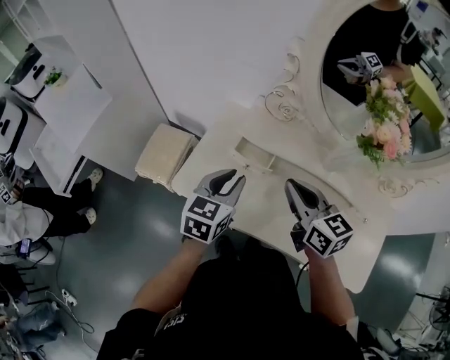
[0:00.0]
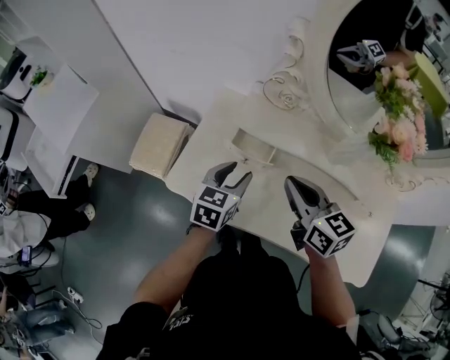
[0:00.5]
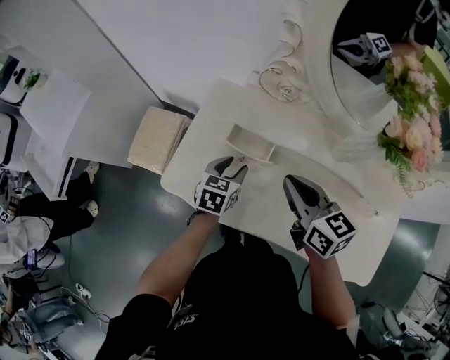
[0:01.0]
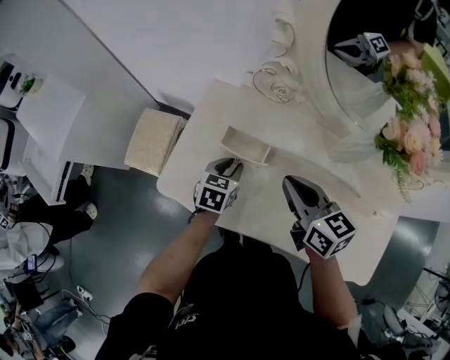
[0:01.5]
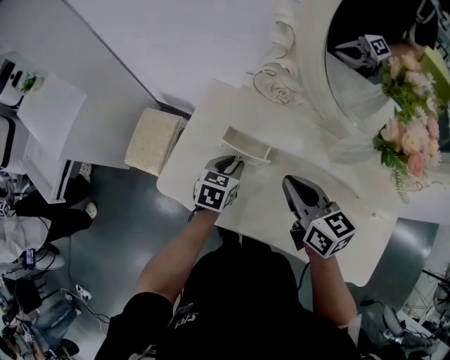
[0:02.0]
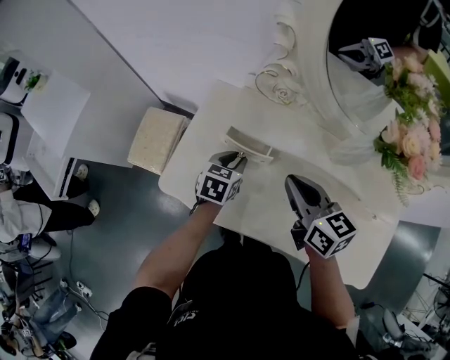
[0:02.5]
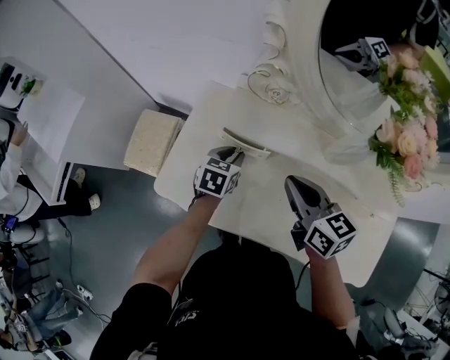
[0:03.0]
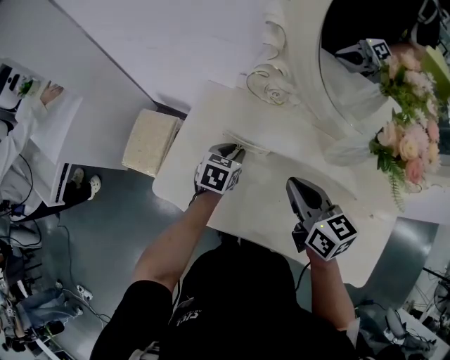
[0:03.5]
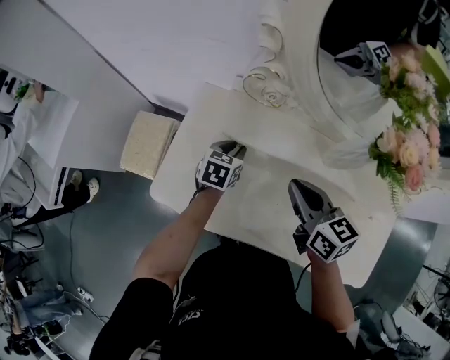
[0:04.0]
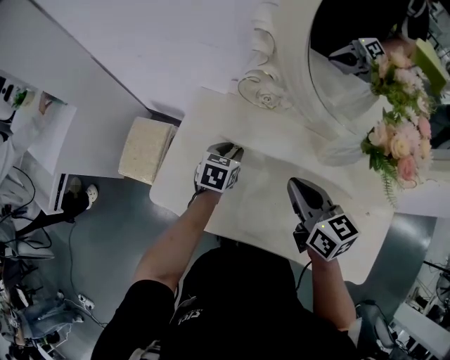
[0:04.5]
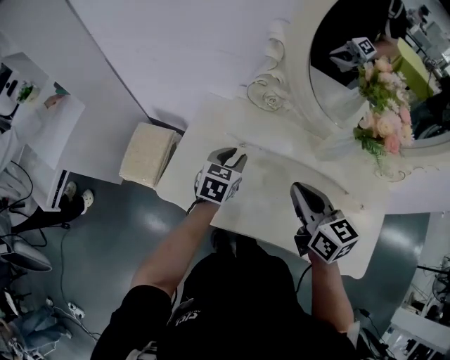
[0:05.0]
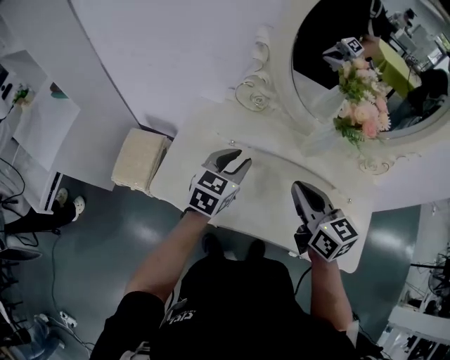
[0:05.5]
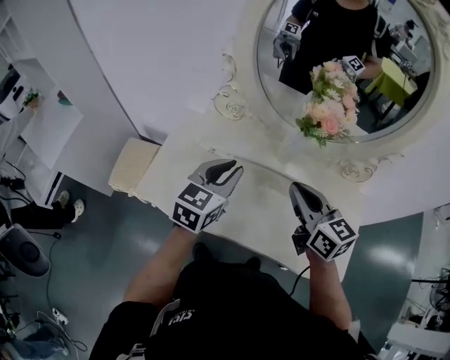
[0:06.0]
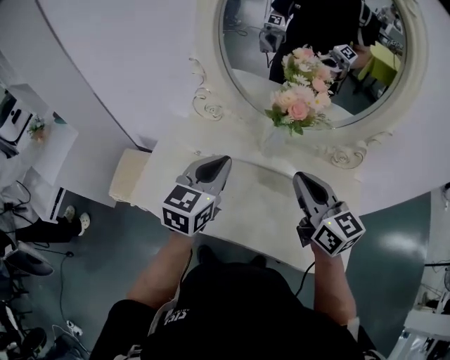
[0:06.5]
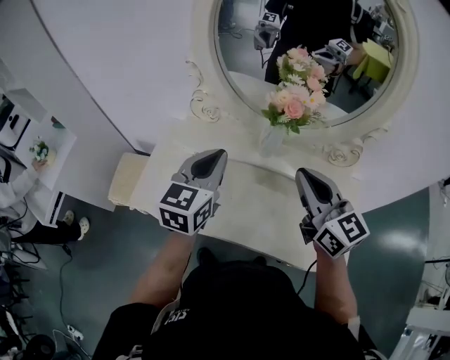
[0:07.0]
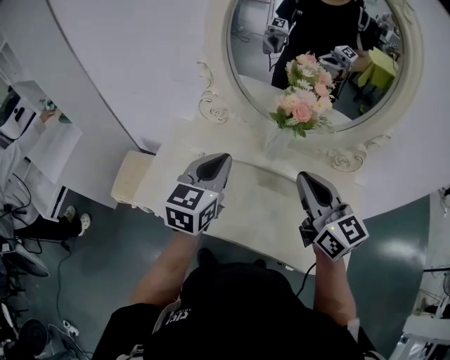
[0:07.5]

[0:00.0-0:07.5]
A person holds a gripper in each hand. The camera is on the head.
0:00.0 to 0:02.0: The left gripper travels downward and forward by about 20 cm, and opens and closes again; the right gripper heads downward, covering roughly 5 cm.
0:02.0 to 0:04.0: The left gripper travels forward by some 5 cm.
0:04.0 to 0:05.5: The right gripper shifts some 10 cm upward and backward, while the left gripper heads upward and backward, covering approximately 20 cm, and changes its angle by roughly 30 degrees.
0:05.5 to 0:07.5: The left gripper is displaced upward and to the right by some 15 cm, and closes up. Meanwhile the right gripper heads to the right and upward, covering some 15 cm.

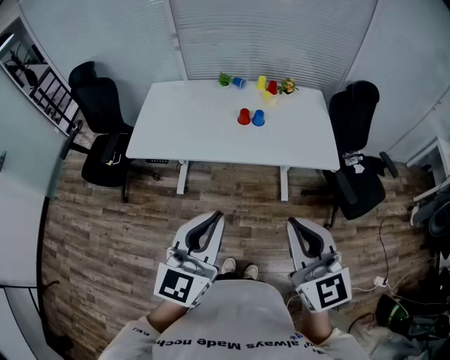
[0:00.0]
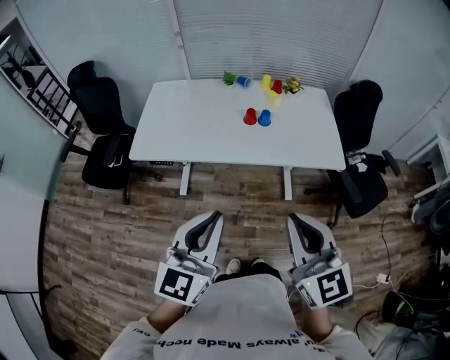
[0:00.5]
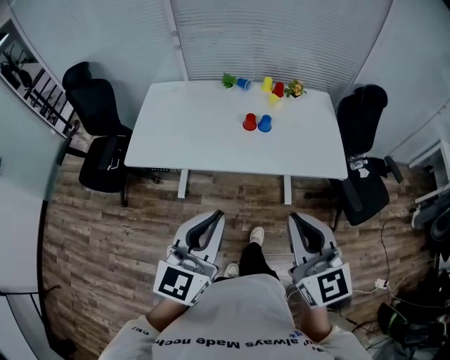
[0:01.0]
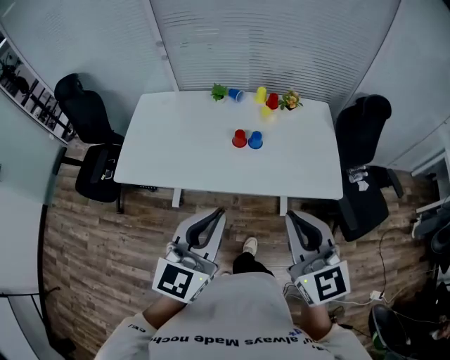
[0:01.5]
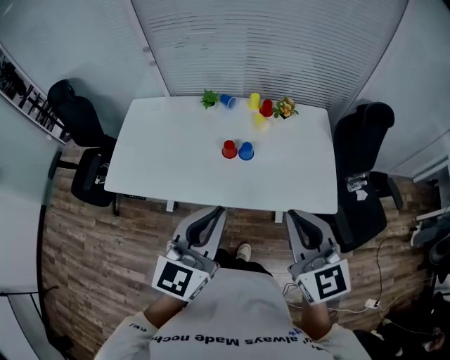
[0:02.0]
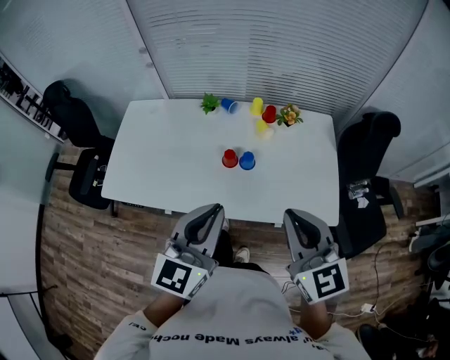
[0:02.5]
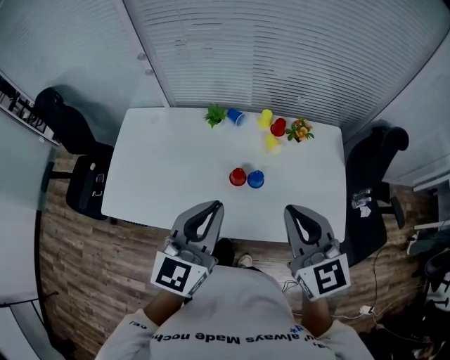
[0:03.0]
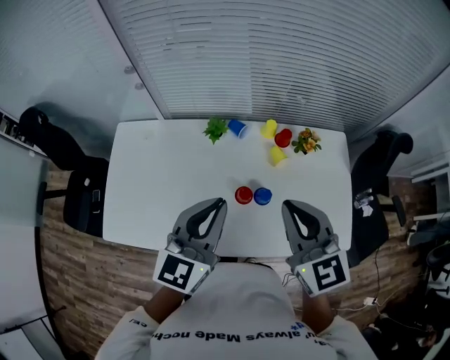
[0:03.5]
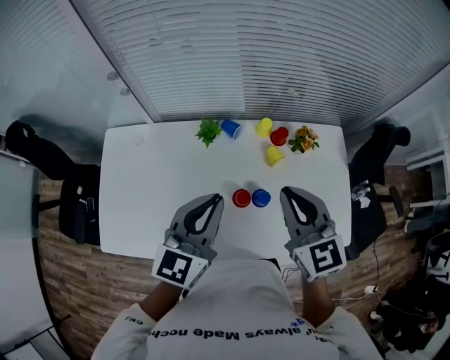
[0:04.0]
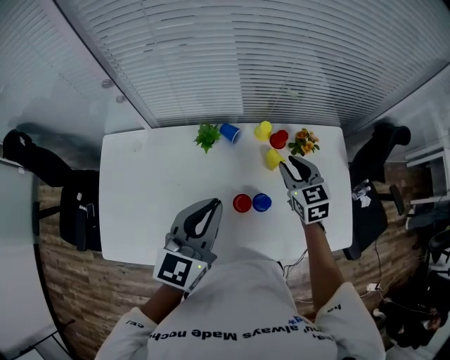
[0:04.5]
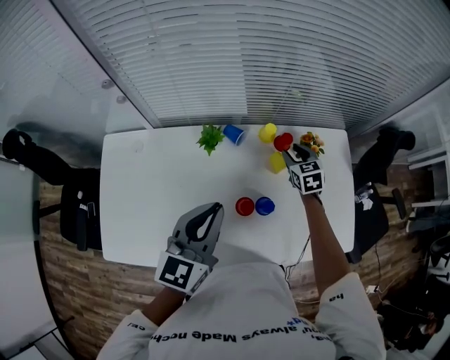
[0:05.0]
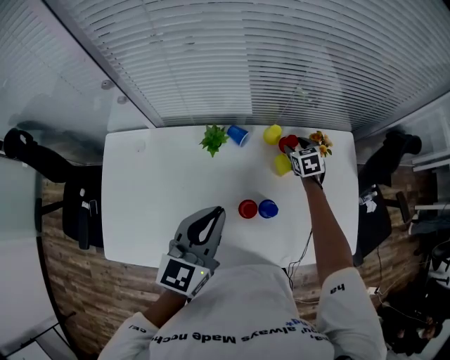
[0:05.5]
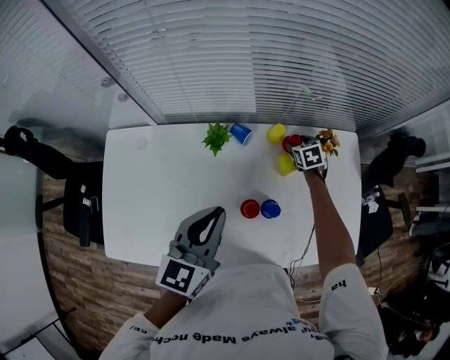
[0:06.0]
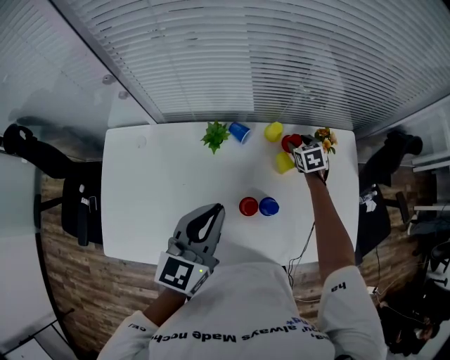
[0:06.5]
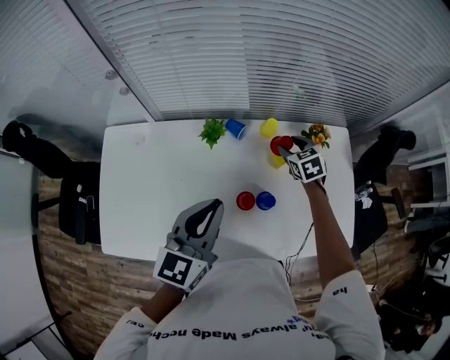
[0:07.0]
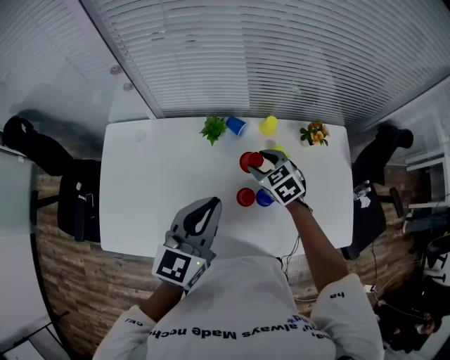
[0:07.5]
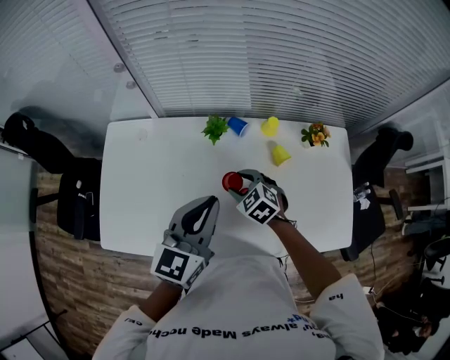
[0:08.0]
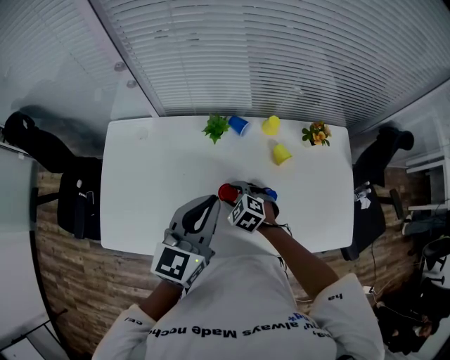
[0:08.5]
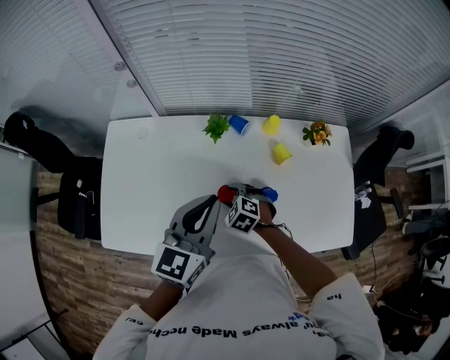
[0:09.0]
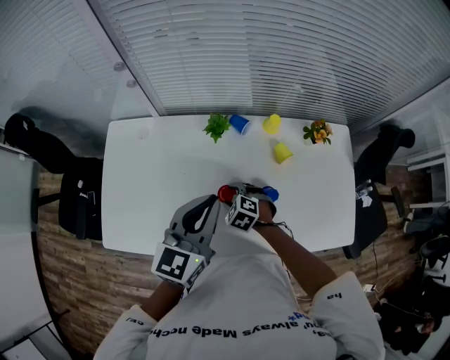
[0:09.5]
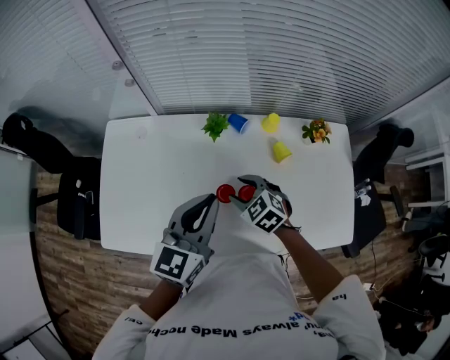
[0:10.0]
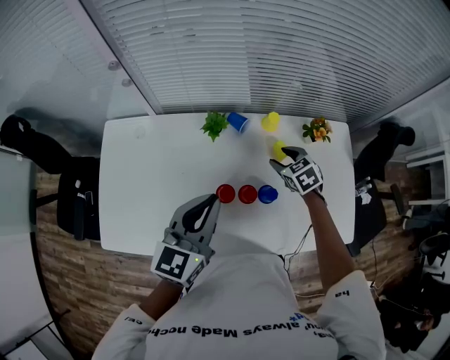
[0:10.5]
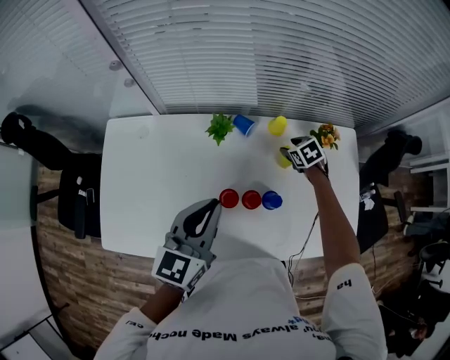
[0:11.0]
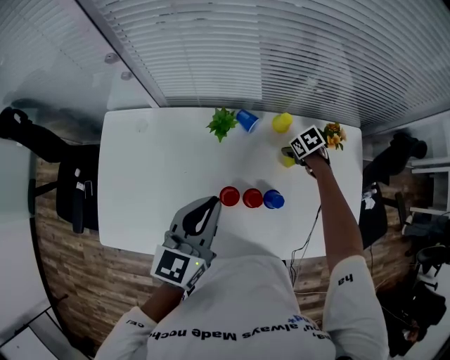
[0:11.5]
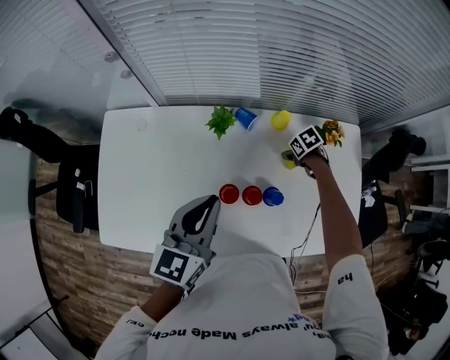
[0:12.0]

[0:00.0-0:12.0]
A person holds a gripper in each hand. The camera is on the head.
0:00.0 to 0:02.0: Both grippers travel together forward, roughly 25 cm.
0:02.0 to 0:04.0: Both grippers travel together forward, roughly 30 cm.
0:04.0 to 0:06.0: The right gripper goes roughly 40 cm downward and forward, tilts its fingers some 40 degrees downward, and opens up. The left gripper ends up approximately 5 cm from where it was.
0:06.0 to 0:08.0: The right gripper travels to the left and backward by about 30 cm, and turns by some 40 degrees.
0:08.0 to 0:10.0: The right gripper reaches approximately 10 cm downward, then returns.
0:10.0 to 0:12.0: The right gripper ends up some 30 cm from where it was, and turns by approximately 50 degrees.

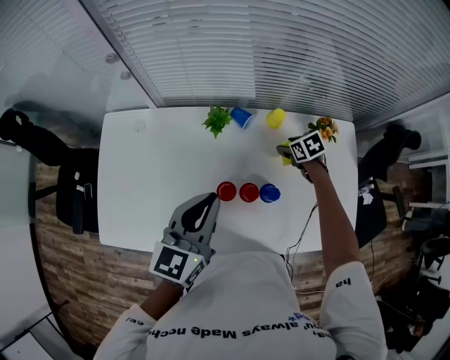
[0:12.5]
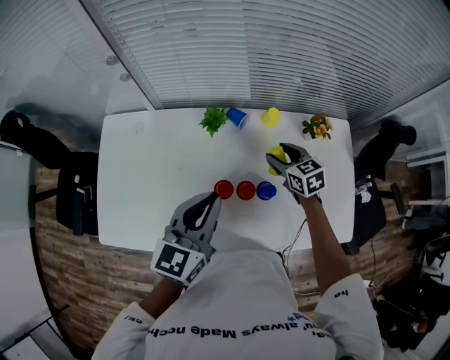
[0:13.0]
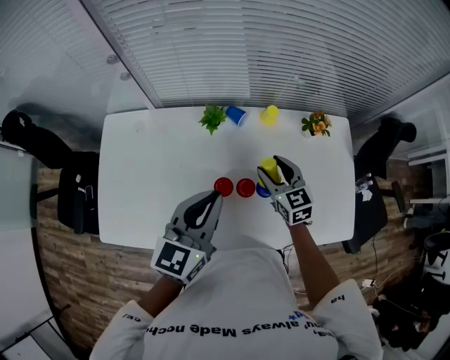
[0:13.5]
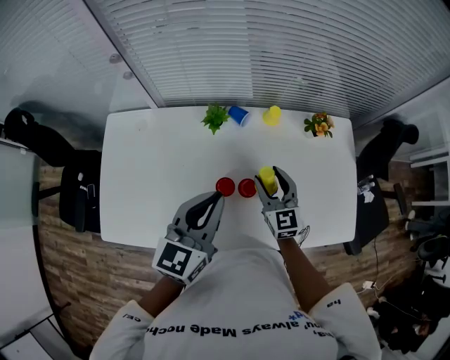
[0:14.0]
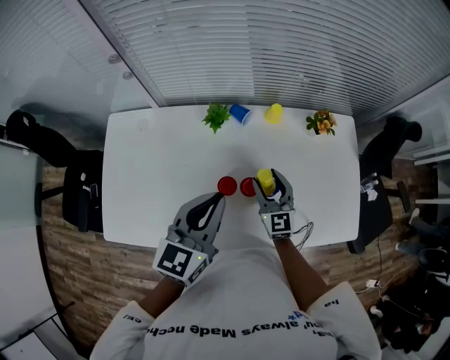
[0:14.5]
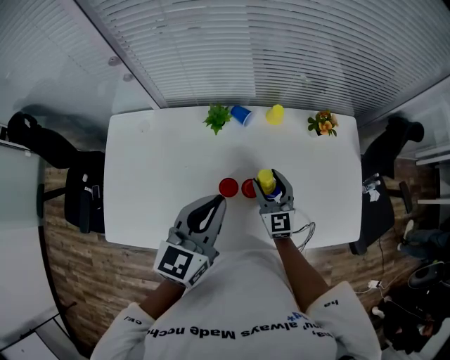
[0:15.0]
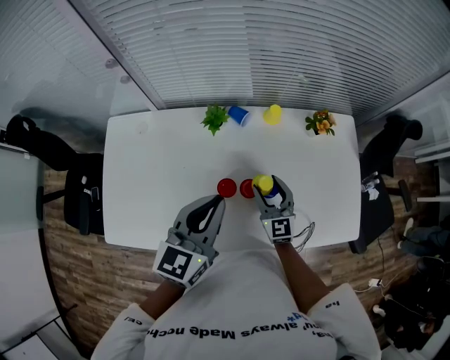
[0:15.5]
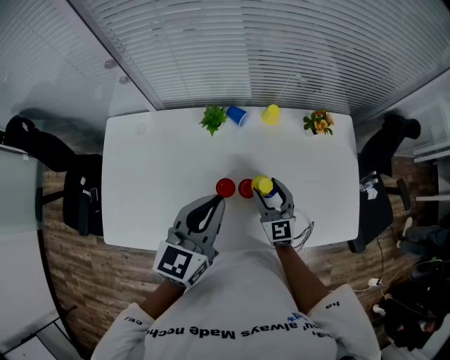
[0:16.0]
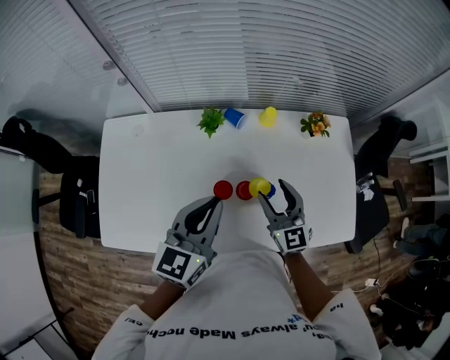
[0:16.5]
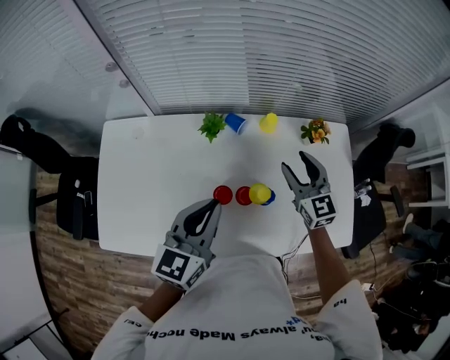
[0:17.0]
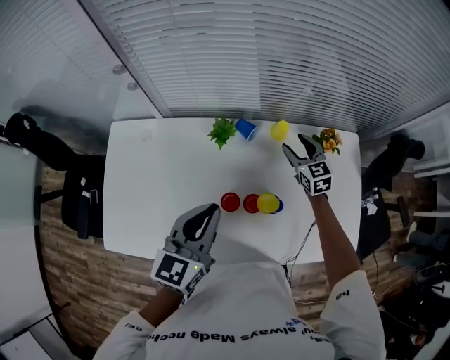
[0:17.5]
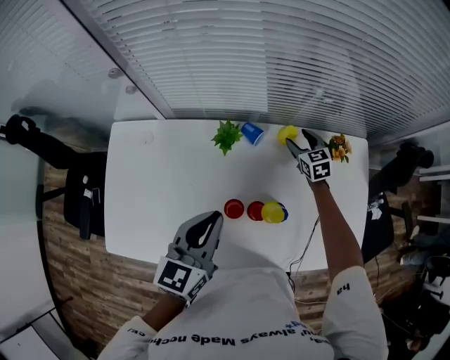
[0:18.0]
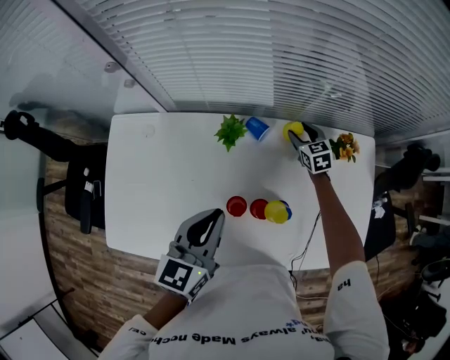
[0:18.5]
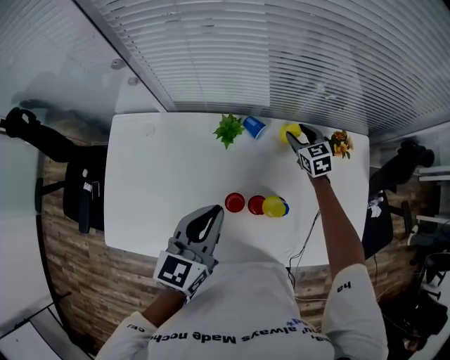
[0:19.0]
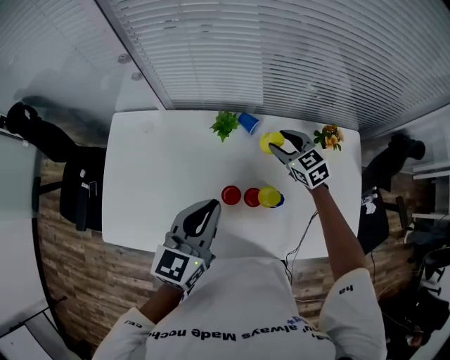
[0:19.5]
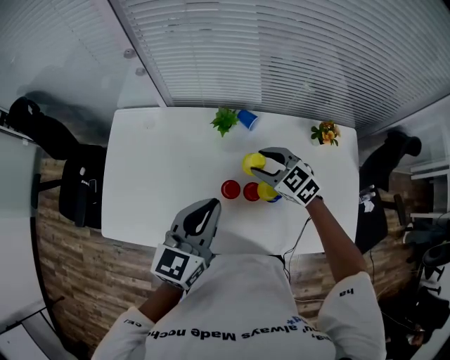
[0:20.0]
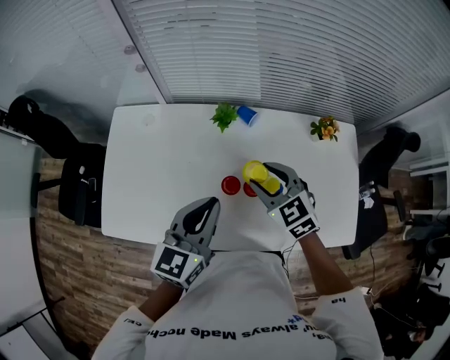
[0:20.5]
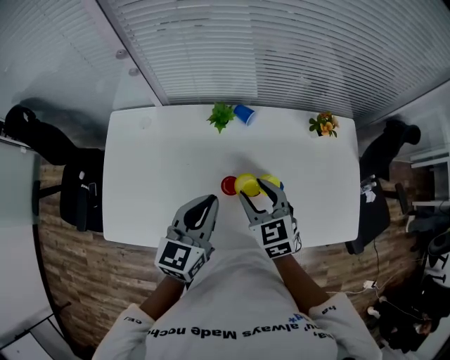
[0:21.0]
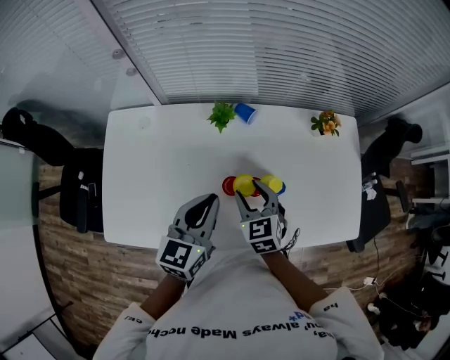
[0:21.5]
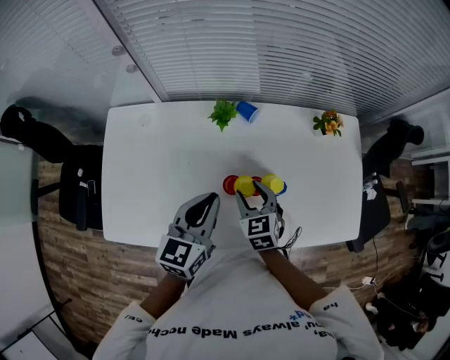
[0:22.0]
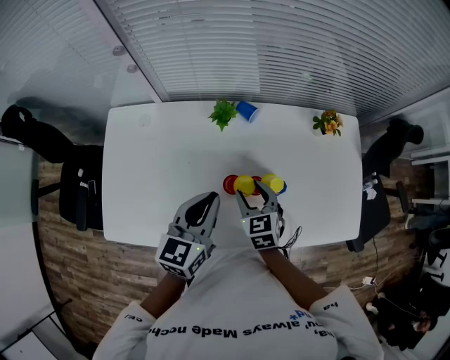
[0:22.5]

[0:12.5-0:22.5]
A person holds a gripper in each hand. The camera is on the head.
0:12.5 to 0:14.5: The right gripper travels backward, to the left and upward by approximately 20 cm, and tips its fingers upward by about 50 degrees.
0:14.5 to 0:16.5: The right gripper heads upward, covering approximately 5 cm.
0:16.5 to 0:18.5: The left gripper goes about 5 cm forward. The right gripper moves forward and downward, some 35 cm, and tilts its fingers about 30 degrees downward.
0:18.5 to 0:20.5: The left gripper shifts about 10 cm backward; the right gripper travels backward, upward and to the left by approximately 35 cm, and turns by some 20 degrees.
0:20.5 to 0:22.5: The left gripper ends up some 5 cm from where it was; the right gripper shifts about 10 cm downward, and changes its angle by approximately 20 degrees.
